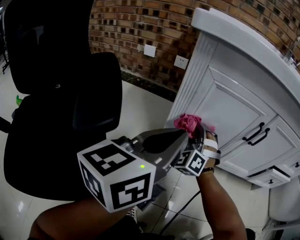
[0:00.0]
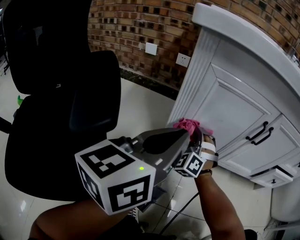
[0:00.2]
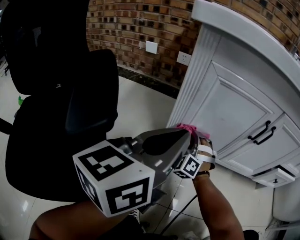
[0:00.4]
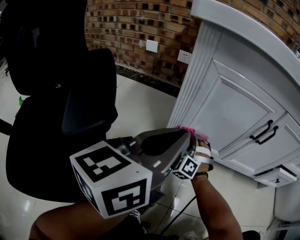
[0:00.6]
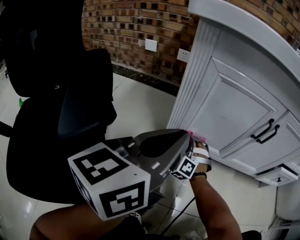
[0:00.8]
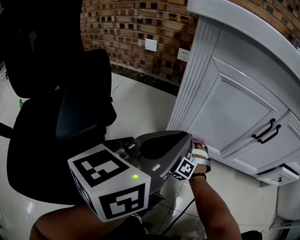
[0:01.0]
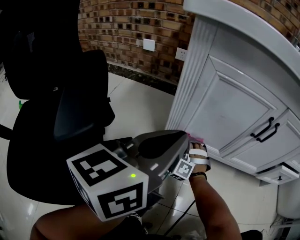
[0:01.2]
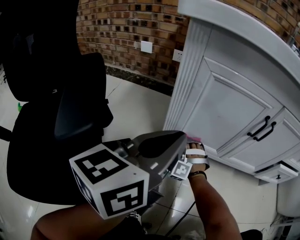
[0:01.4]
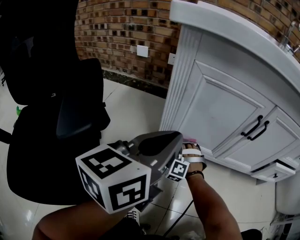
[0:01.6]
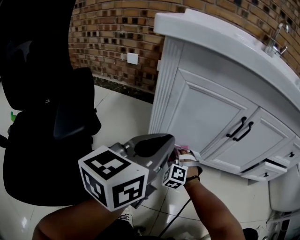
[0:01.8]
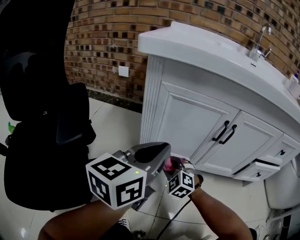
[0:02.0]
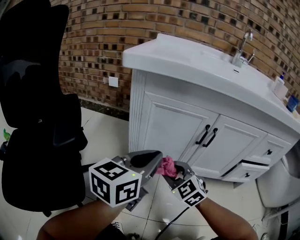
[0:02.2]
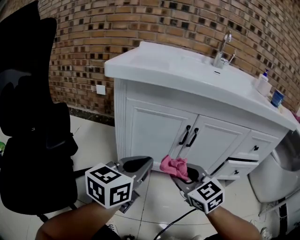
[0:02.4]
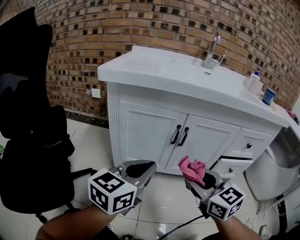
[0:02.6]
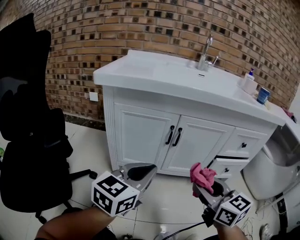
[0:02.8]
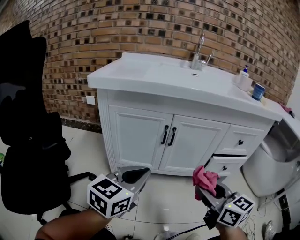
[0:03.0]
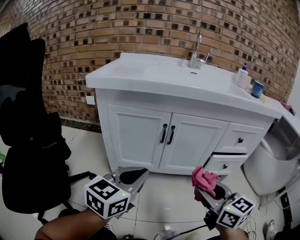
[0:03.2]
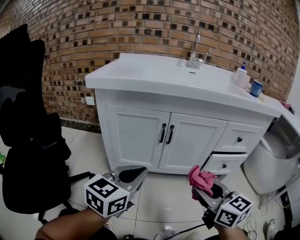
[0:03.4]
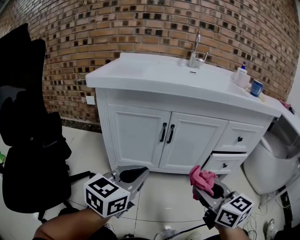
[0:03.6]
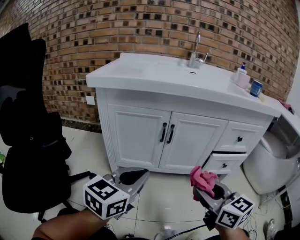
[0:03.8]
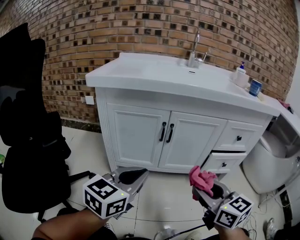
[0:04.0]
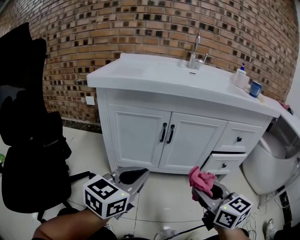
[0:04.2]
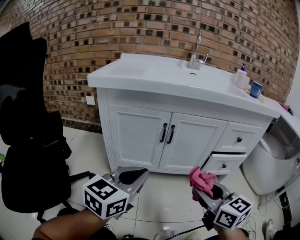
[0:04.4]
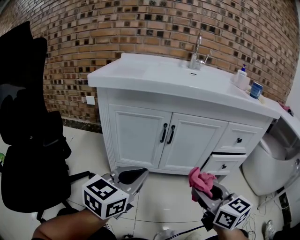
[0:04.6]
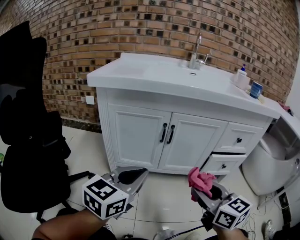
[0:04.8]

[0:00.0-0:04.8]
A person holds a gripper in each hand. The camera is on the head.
0:00.0 to 0:01.6: The right gripper travels downward by roughly 15 cm, and turns by some 20 degrees.
0:01.6 to 0:03.2: The left gripper travels to the right and backward by about 20 cm, and swivels approximately 20 degrees. The right gripper shifts approximately 60 cm upward, to the right and backward, and rolls clockwise, seen from behind, by approximately 90 degrees.
0:03.2 to 0:04.8: The grippers move only a little.

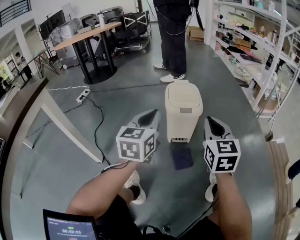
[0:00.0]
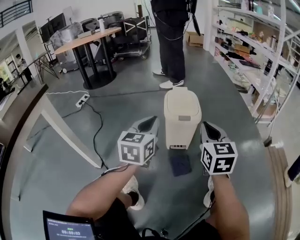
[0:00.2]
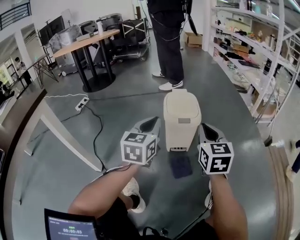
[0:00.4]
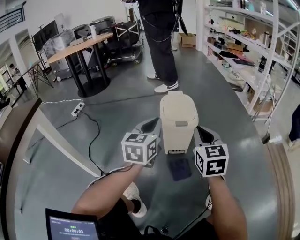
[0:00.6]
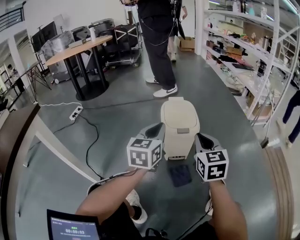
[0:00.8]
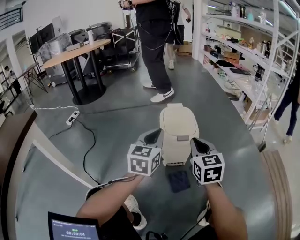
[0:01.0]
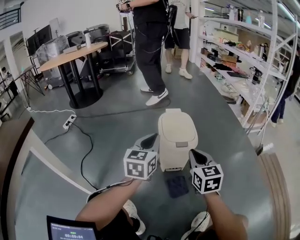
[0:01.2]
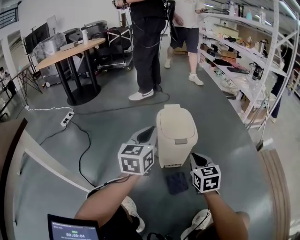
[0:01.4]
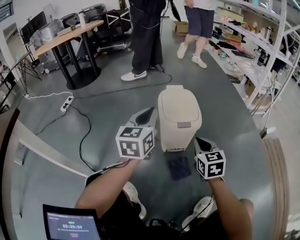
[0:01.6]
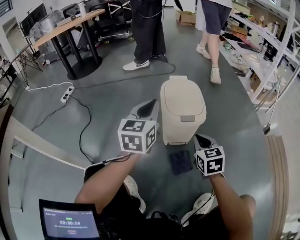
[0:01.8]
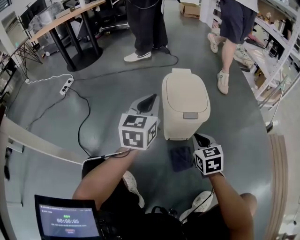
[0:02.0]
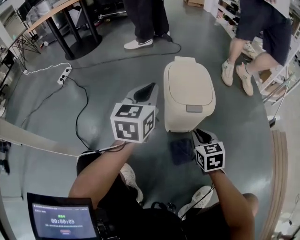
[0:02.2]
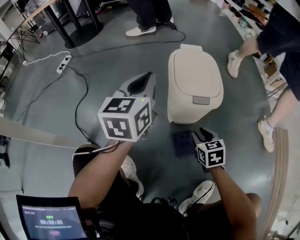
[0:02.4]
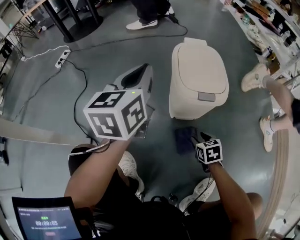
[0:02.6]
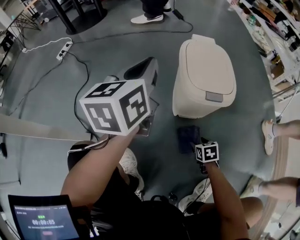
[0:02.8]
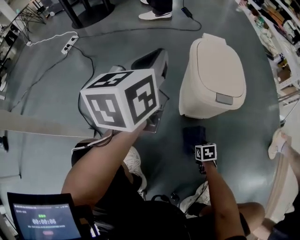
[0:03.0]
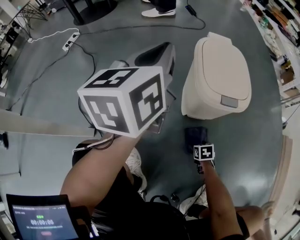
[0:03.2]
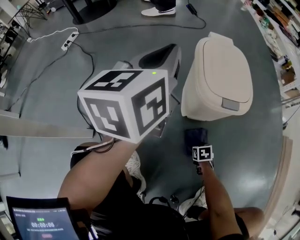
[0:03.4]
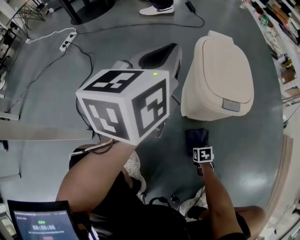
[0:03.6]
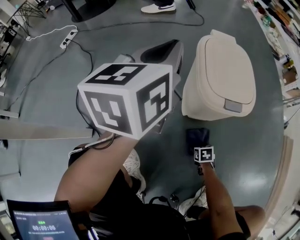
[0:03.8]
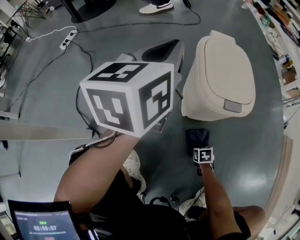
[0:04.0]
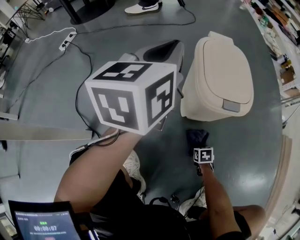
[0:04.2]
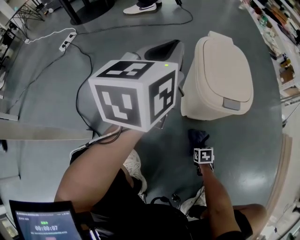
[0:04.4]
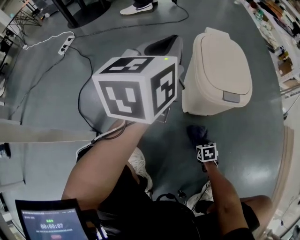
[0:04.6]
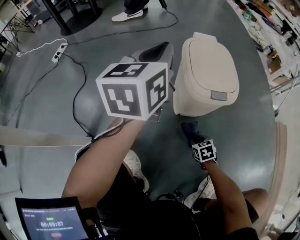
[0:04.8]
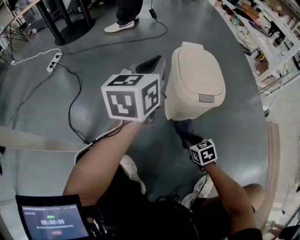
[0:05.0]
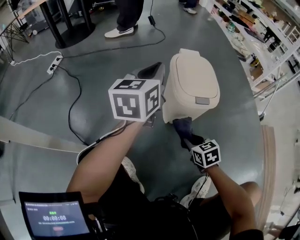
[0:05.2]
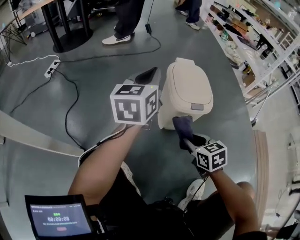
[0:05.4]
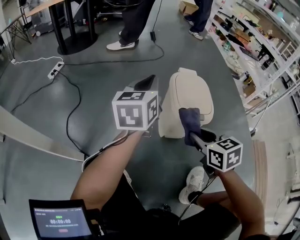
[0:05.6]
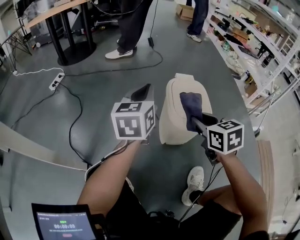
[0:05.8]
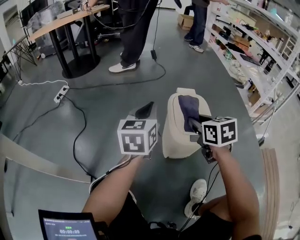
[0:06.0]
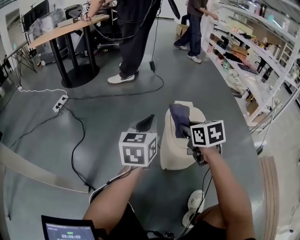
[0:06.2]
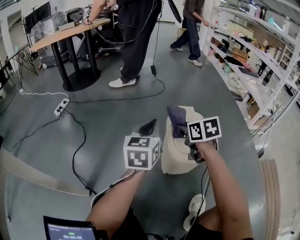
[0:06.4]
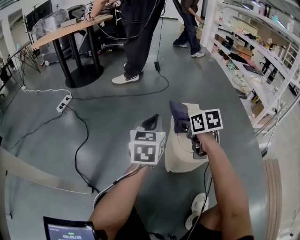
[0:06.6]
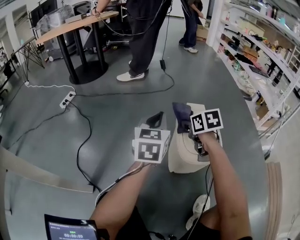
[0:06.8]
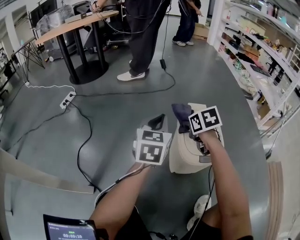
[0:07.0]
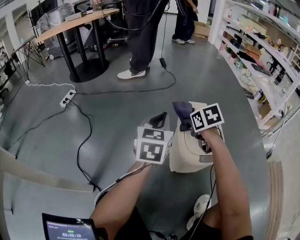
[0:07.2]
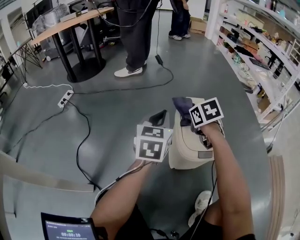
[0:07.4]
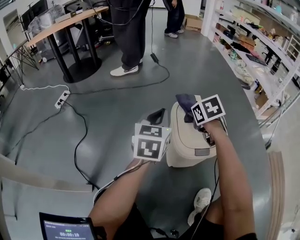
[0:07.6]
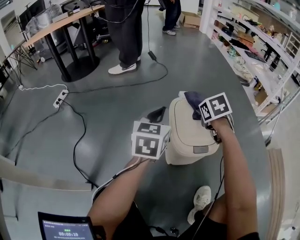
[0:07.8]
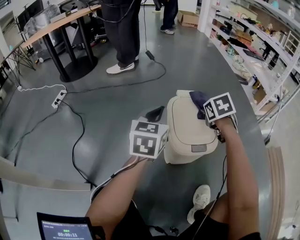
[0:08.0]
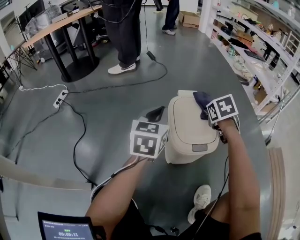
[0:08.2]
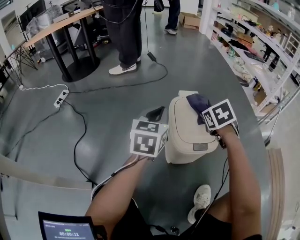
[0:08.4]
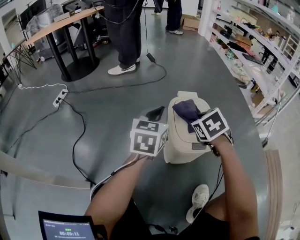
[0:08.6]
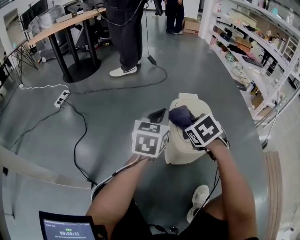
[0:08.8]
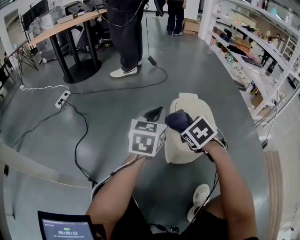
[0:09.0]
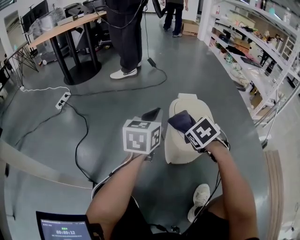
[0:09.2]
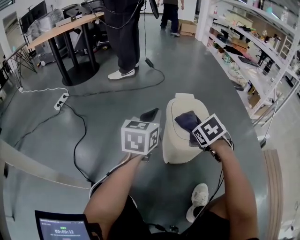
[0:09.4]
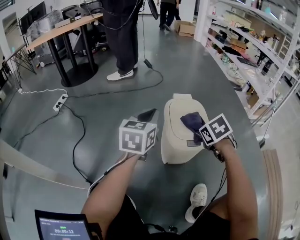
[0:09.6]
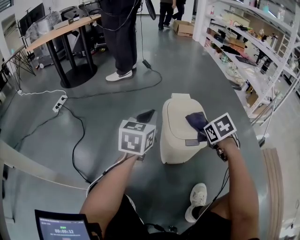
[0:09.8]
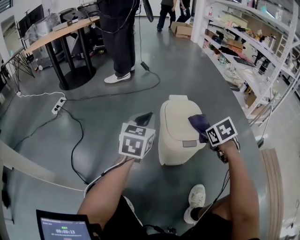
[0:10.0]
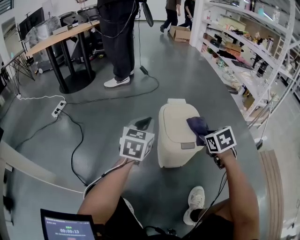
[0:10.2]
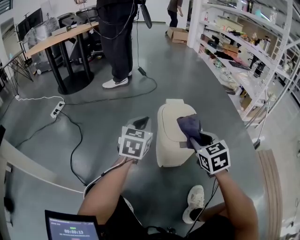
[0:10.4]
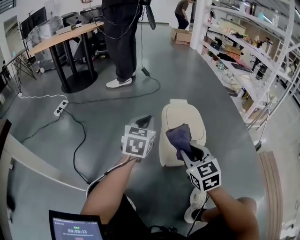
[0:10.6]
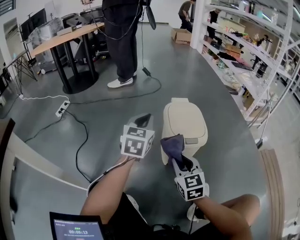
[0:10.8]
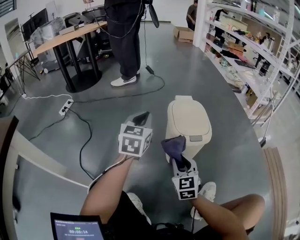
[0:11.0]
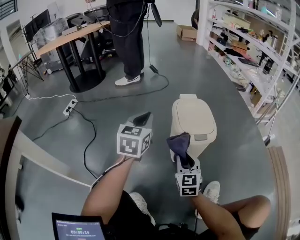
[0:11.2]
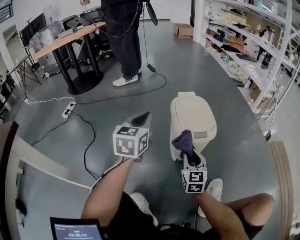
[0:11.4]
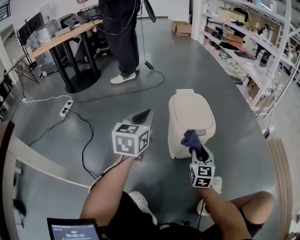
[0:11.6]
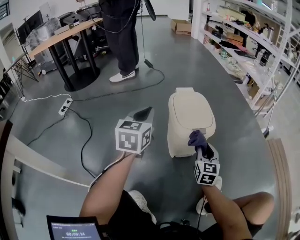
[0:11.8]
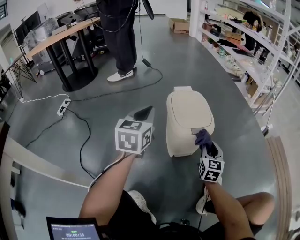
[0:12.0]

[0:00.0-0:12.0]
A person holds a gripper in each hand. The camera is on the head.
0:00.0 to 0:01.6: The left gripper heads forward, covering some 15 cm; the right gripper shifts approximately 15 cm downward and forward.
0:01.6 to 0:03.0: The right gripper travels downward by about 40 cm, angles its fingers downward, by roughly 40 degrees, and opens up. The left gripper heads forward, to the left and downward, covering approximately 10 cm.
0:03.0 to 0:04.4: The right gripper goes about 5 cm downward, and closes up.
0:04.4 to 0:06.0: The right gripper heads upward, covering some 50 cm, and angles its fingers upward, by some 40 degrees.
0:06.0 to 0:07.6: The right gripper travels forward and downward by about 15 cm, while the left gripper travels forward by some 5 cm.
0:07.6 to 0:09.0: The right gripper shifts approximately 15 cm backward, and changes its angle by some 20 degrees.
0:09.0 to 0:10.4: The right gripper shifts approximately 10 cm to the right, and rotates some 30 degrees.
0:10.4 to 0:12.0: The right gripper is displaced downward and to the right by about 15 cm, and swivels about 30 degrees.

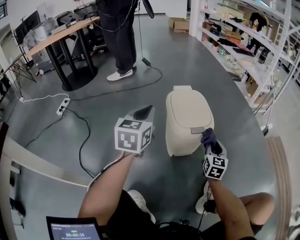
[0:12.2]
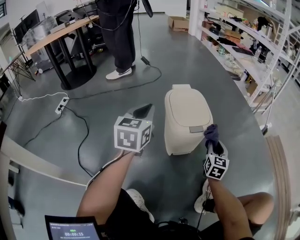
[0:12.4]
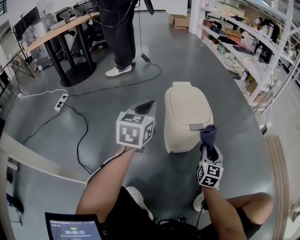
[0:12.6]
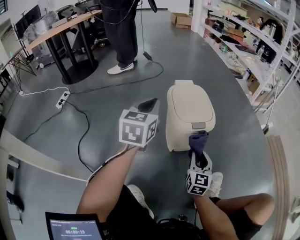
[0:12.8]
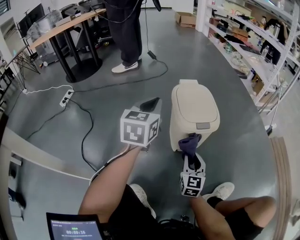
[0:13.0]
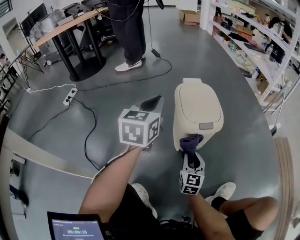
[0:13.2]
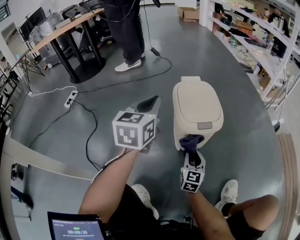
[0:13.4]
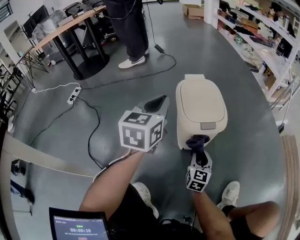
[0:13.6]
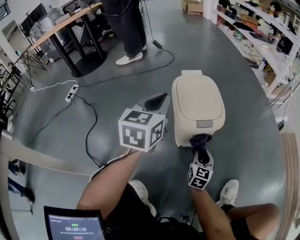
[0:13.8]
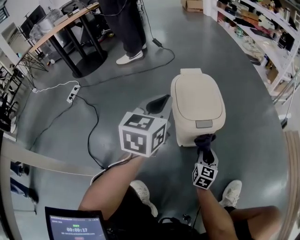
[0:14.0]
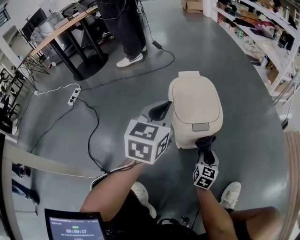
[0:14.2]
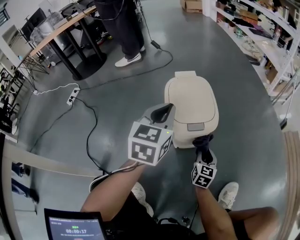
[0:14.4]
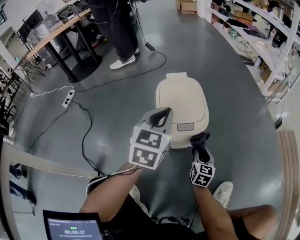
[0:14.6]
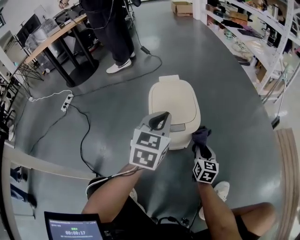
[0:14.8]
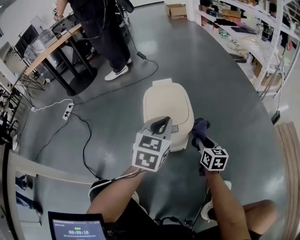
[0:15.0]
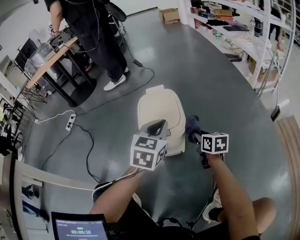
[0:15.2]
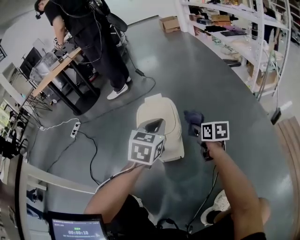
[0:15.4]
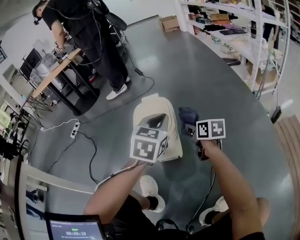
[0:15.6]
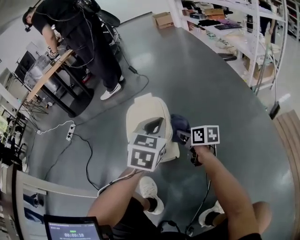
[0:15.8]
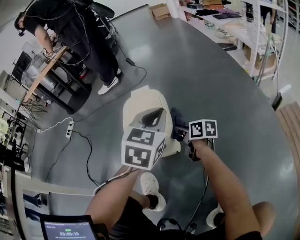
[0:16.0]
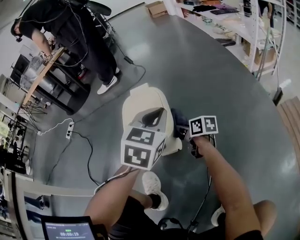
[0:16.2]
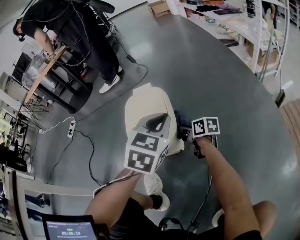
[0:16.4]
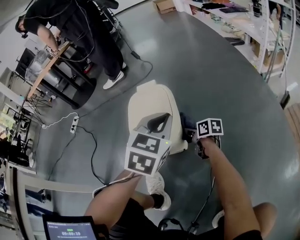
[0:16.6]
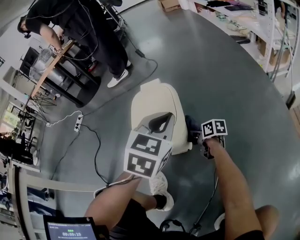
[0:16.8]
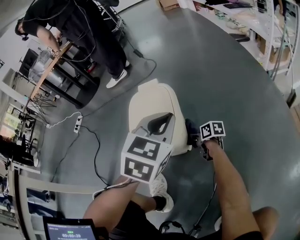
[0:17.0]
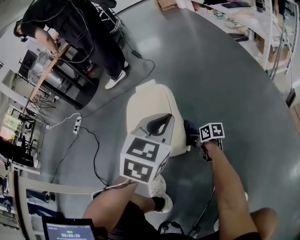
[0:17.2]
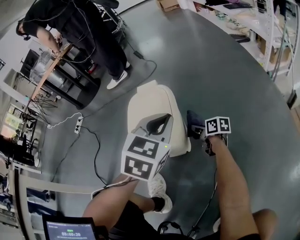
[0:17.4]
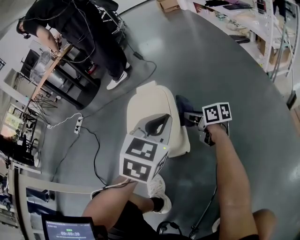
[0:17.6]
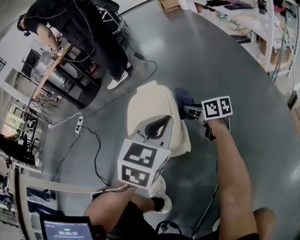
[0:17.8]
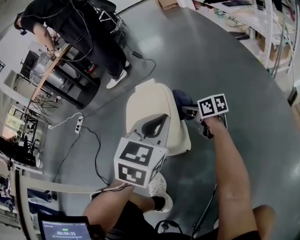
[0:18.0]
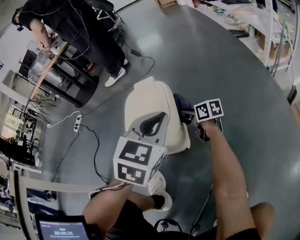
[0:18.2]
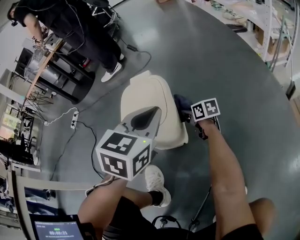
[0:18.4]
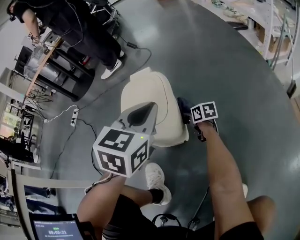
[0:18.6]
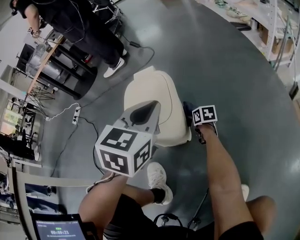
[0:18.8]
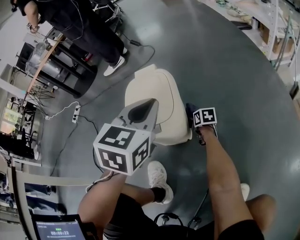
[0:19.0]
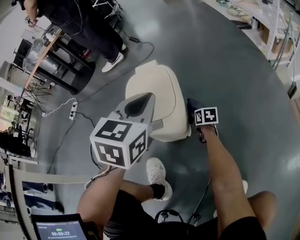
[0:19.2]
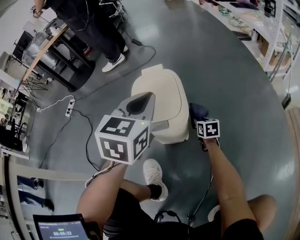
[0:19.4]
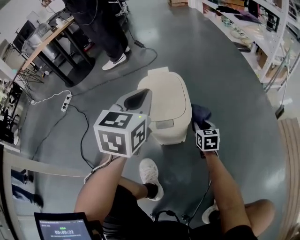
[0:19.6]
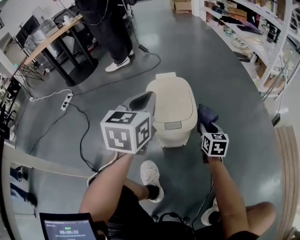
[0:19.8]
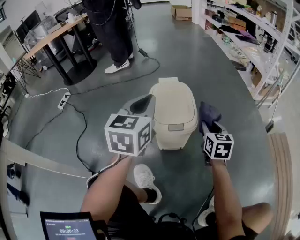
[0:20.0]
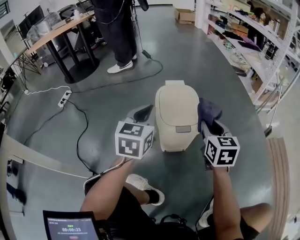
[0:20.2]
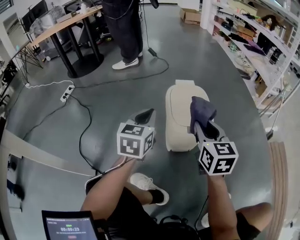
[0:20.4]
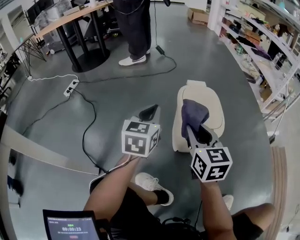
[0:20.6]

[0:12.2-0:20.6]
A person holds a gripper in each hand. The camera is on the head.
0:12.2 to 0:13.6: The right gripper travels downward and to the left by some 15 cm.
0:13.6 to 0:15.0: The right gripper heads to the right and forward, covering some 15 cm, and turns by some 20 degrees; the left gripper shifts some 15 cm to the right.
0:15.0 to 0:16.4: The left gripper heads to the right, covering about 10 cm; the right gripper shifts some 5 cm forward, travels upward and back again, about 10 cm each way, and changes its angle by some 40 degrees.
0:16.4 to 0:17.8: The right gripper travels forward by about 10 cm, travels downward and back again, approximately 10 cm each way, and swivels approximately 20 degrees.
0:17.8 to 0:19.2: The right gripper heads downward, covering approximately 20 cm, and angles its fingers downward, by roughly 30 degrees. Meanwhile the left gripper travels to the left by some 5 cm.
0:19.2 to 0:20.6: The right gripper travels upward, to the left and backward by roughly 50 cm, and turns by some 40 degrees. The left gripper moves to the left, roughly 25 cm, and rotates approximately 20 degrees.
